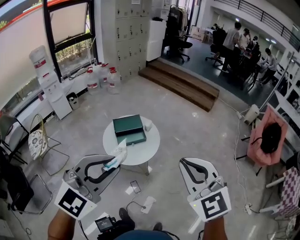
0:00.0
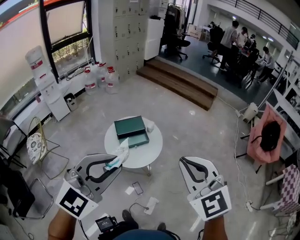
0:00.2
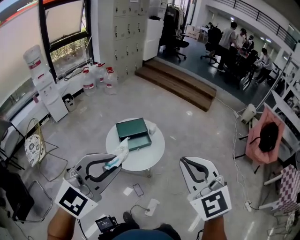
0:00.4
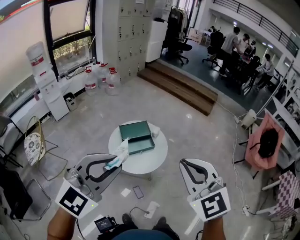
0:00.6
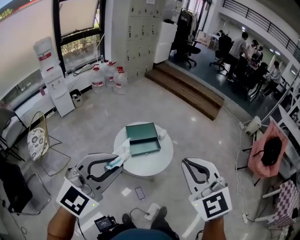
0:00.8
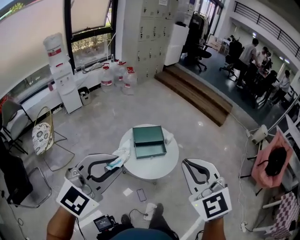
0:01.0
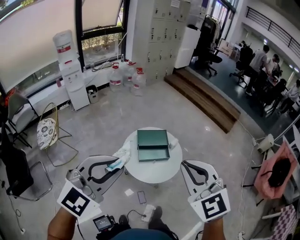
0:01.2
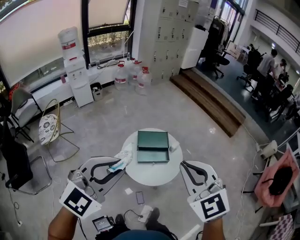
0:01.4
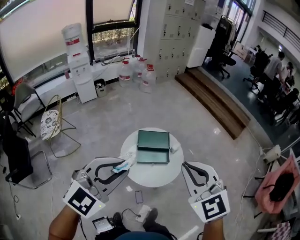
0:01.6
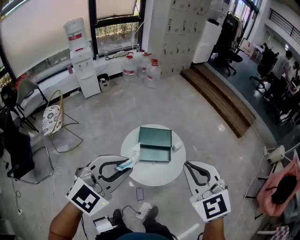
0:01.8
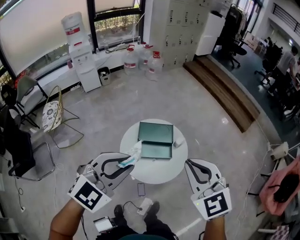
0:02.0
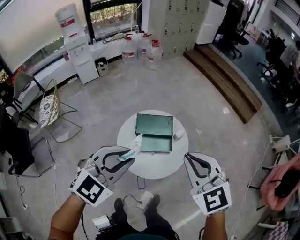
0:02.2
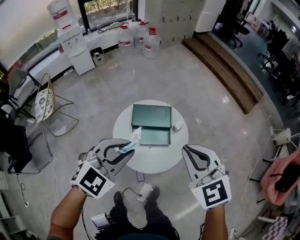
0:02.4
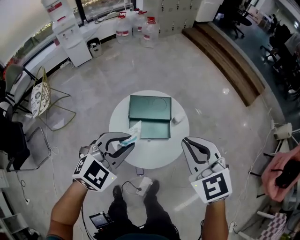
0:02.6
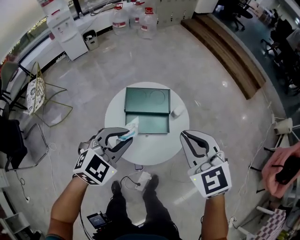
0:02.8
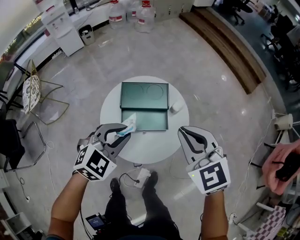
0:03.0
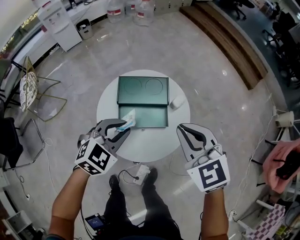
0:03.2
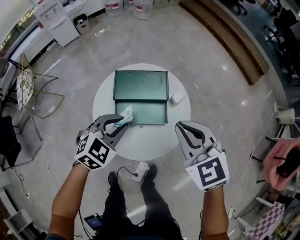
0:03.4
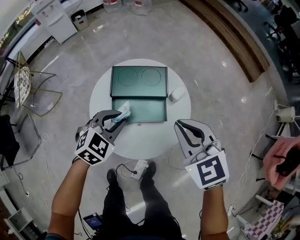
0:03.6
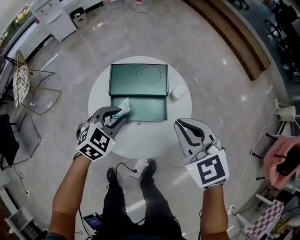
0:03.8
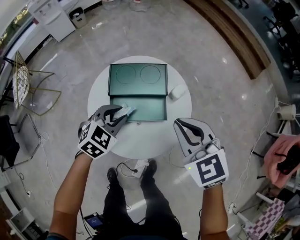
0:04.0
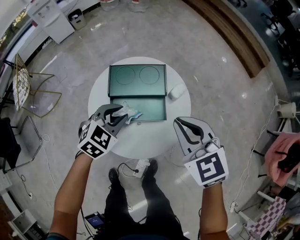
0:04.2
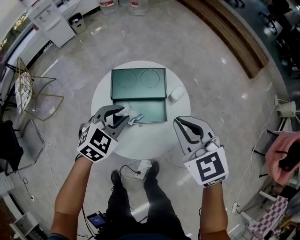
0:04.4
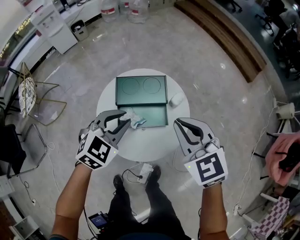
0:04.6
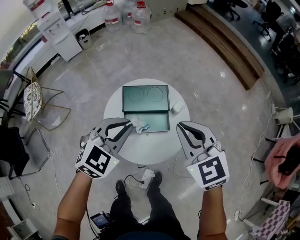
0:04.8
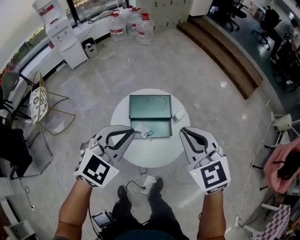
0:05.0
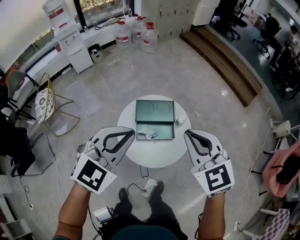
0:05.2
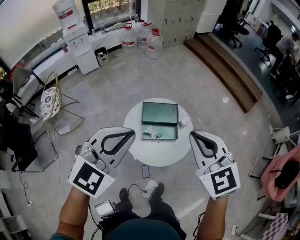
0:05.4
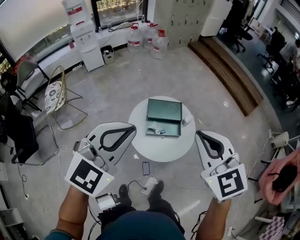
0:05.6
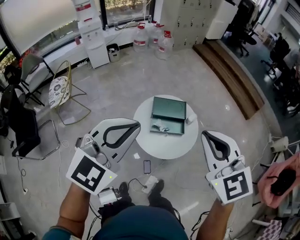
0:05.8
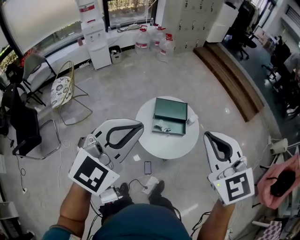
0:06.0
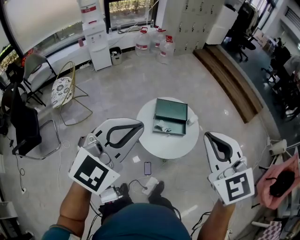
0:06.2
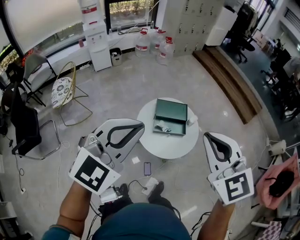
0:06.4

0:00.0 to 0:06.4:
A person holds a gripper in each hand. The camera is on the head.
0:00.0 to 0:01.6: The two grippers go approximately 25 cm forward and to the left.
0:01.6 to 0:03.2: Both grippers travel together downward and forward, approximately 40 cm. The left gripper turns by roughly 30 degrees.
0:03.2 to 0:04.8: The right gripper goes approximately 5 cm upward. The left gripper travels upward by approximately 10 cm.
0:04.8 to 0:06.4: The right gripper heads upward and backward, covering some 40 cm, while the left gripper heads upward, backward and to the left, covering about 40 cm, and rotates about 20 degrees.

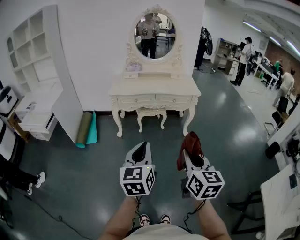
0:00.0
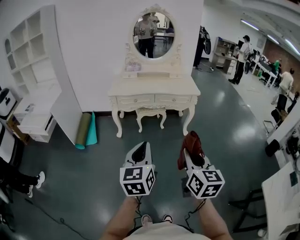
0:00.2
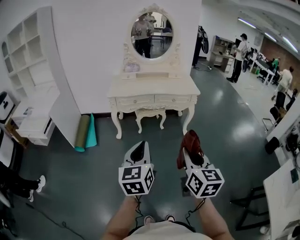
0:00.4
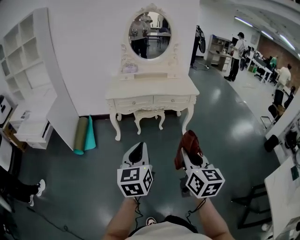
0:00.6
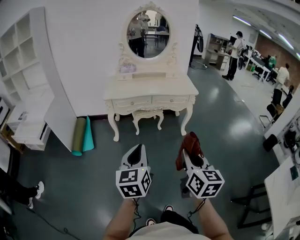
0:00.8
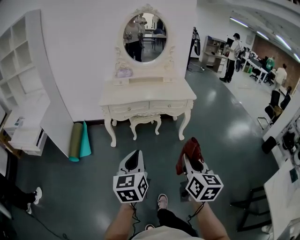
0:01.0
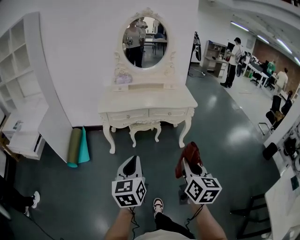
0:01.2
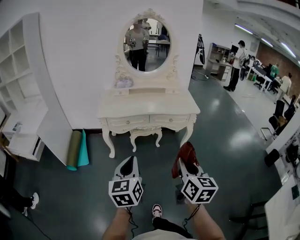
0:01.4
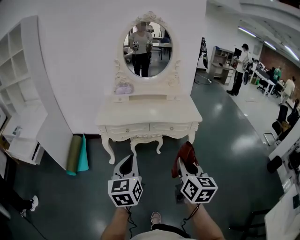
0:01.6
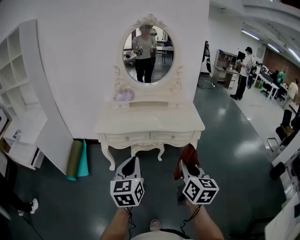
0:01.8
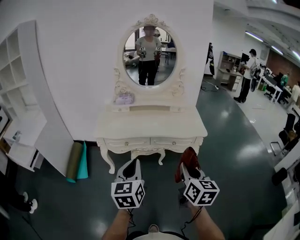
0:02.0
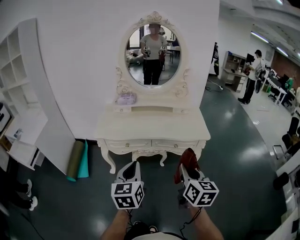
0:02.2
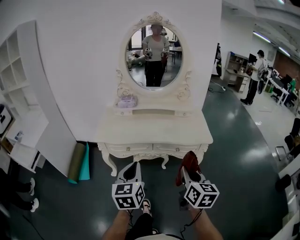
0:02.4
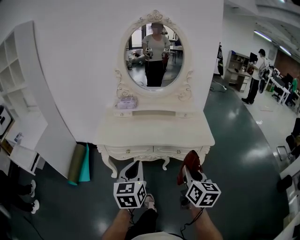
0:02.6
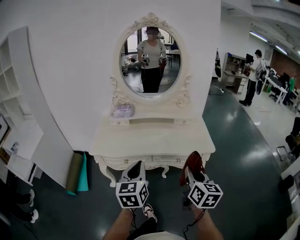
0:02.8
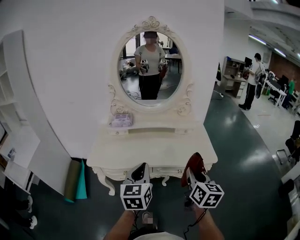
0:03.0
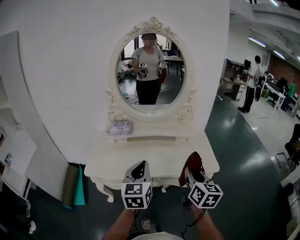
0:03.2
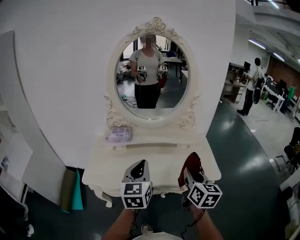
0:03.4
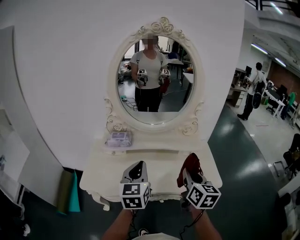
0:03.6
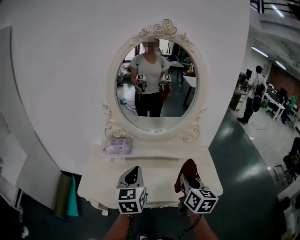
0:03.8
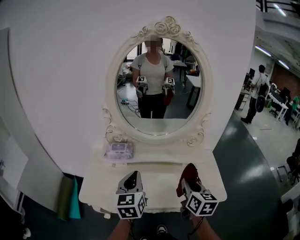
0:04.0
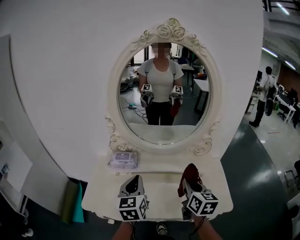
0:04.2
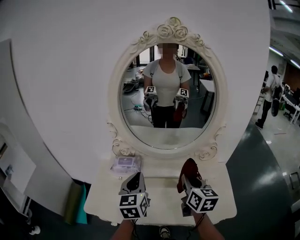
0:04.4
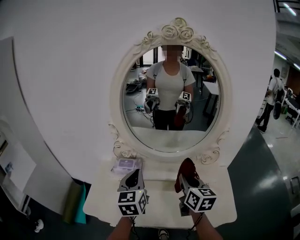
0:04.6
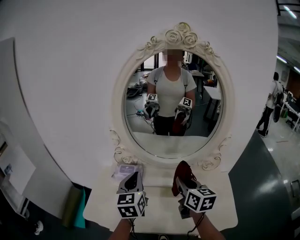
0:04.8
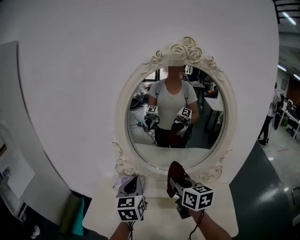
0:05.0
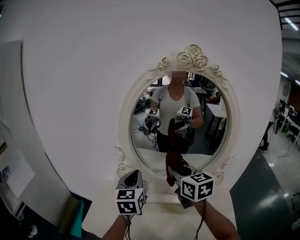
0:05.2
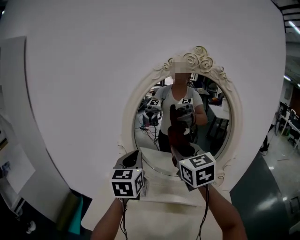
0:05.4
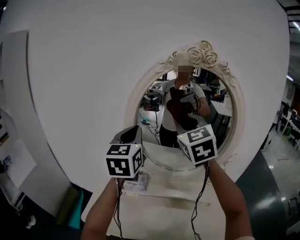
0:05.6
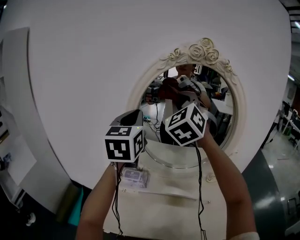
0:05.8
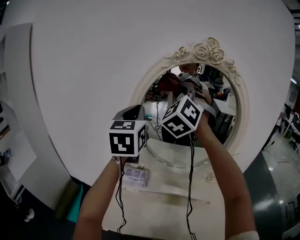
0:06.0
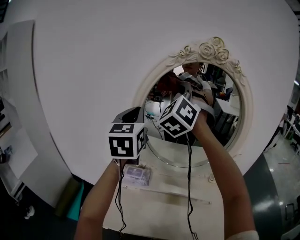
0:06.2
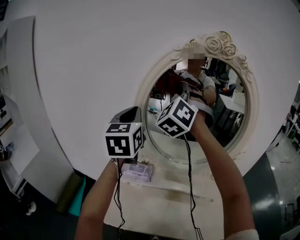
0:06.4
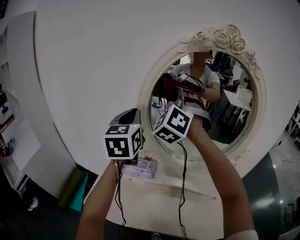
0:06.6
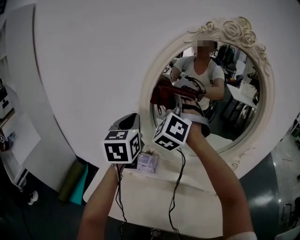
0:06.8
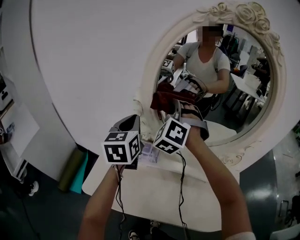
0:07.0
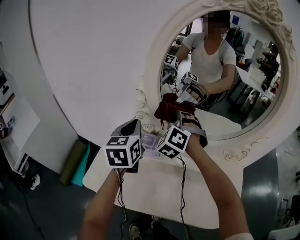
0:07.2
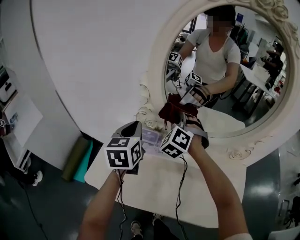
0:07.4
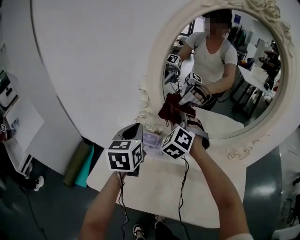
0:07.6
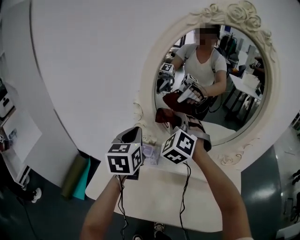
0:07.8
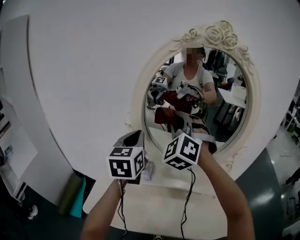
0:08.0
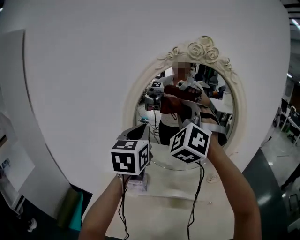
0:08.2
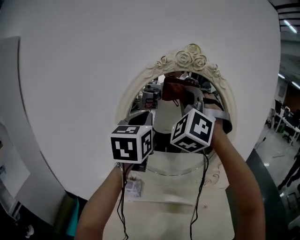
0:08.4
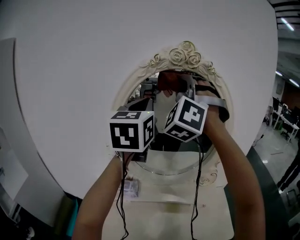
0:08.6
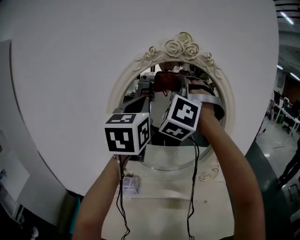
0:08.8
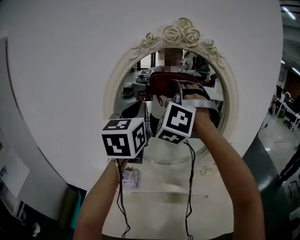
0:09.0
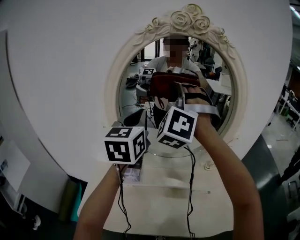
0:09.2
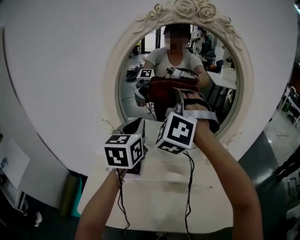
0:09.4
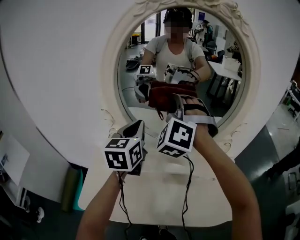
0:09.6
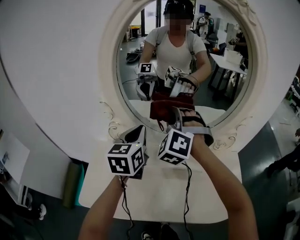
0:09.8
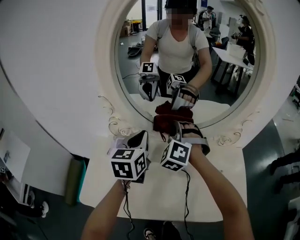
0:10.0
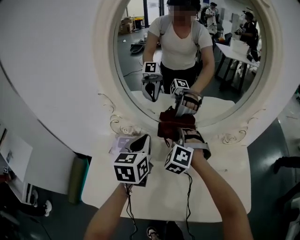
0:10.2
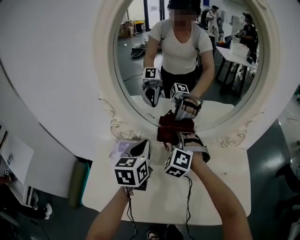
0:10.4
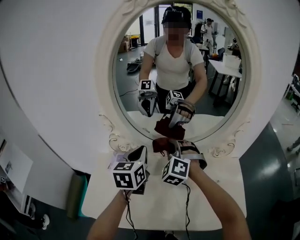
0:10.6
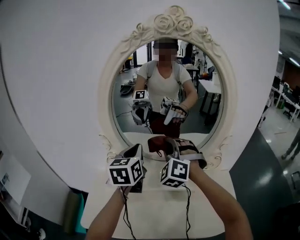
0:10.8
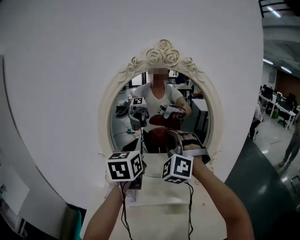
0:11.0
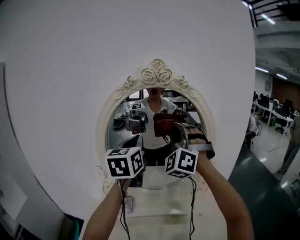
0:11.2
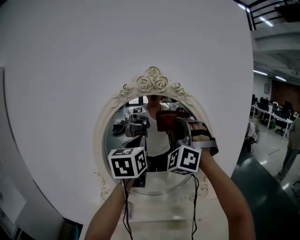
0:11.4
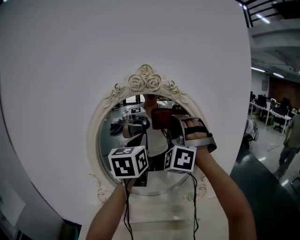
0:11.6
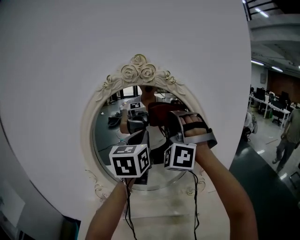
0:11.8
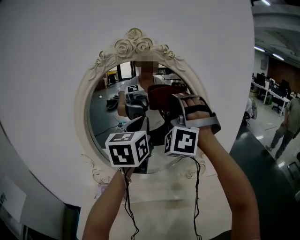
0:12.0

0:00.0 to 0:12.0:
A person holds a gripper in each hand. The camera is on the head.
0:00.0 to 0:01.6: The grippers both shift forward by about 25 cm.
0:01.6 to 0:03.0: The grippers both shift forward by some 35 cm.
0:03.0 to 0:04.4: Both grippers move forward, approximately 35 cm.
0:04.4 to 0:06.0: The left gripper goes approximately 30 cm upward and forward. Meanwhile the right gripper moves upward, forward and to the left, some 40 cm, and rolls counterclockwise, seen from behind, by roughly 80 degrees.
0:06.0 to 0:07.6: Both grippers move downward, approximately 30 cm. The right gripper turns by approximately 30 degrees; the left gripper rotates about 20 degrees.
0:07.6 to 0:09.0: The left gripper shifts approximately 30 cm upward and to the right, and swivels roughly 30 degrees, while the right gripper heads upward, covering about 35 cm, and rotates some 30 degrees.
0:09.0 to 0:10.4: The two grippers go about 40 cm downward. The left gripper swivels some 30 degrees. Meanwhile the right gripper angles its fingers downward, by about 30 degrees.
0:10.4 to 0:12.0: The left gripper is displaced upward and to the right by about 35 cm, and swivels some 30 degrees. The right gripper is displaced upward by about 40 cm, and angles its fingers upward, by approximately 40 degrees.

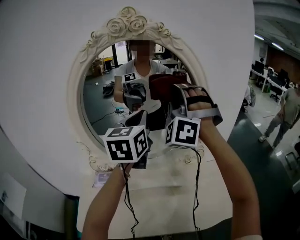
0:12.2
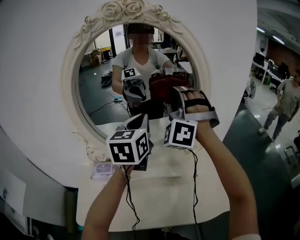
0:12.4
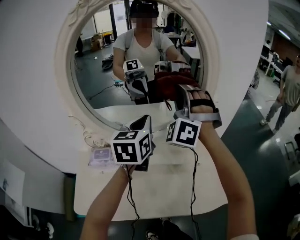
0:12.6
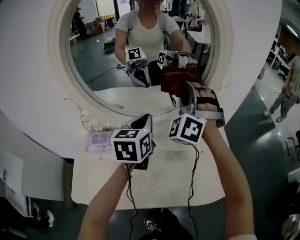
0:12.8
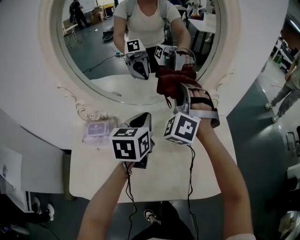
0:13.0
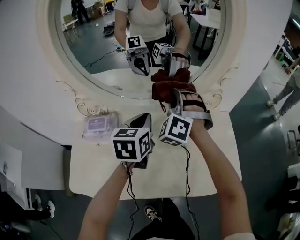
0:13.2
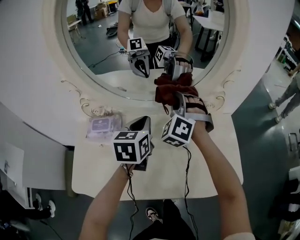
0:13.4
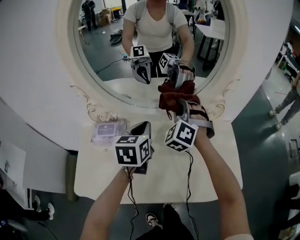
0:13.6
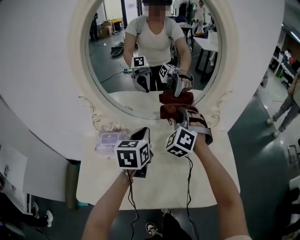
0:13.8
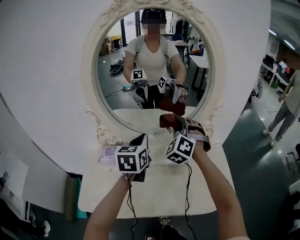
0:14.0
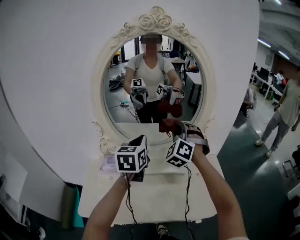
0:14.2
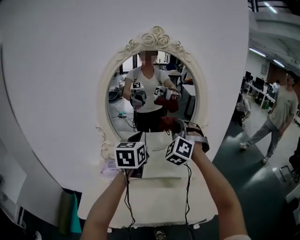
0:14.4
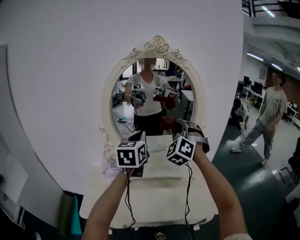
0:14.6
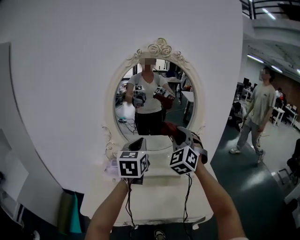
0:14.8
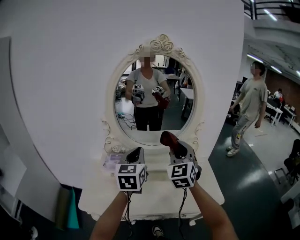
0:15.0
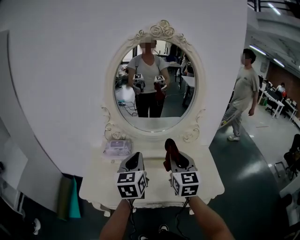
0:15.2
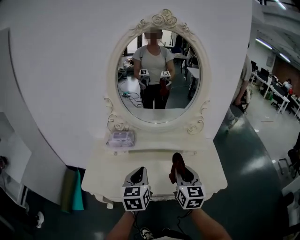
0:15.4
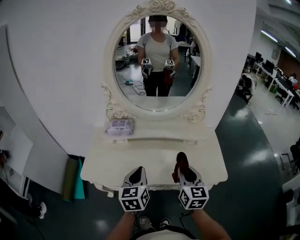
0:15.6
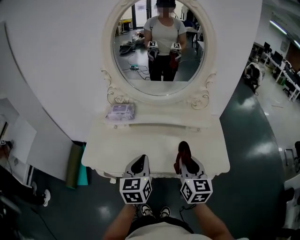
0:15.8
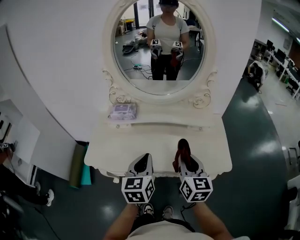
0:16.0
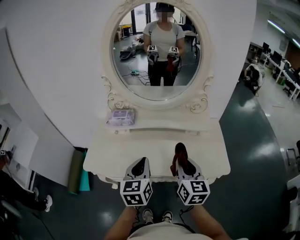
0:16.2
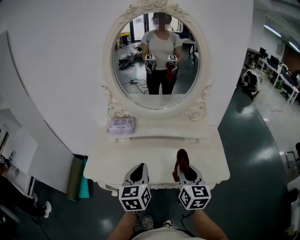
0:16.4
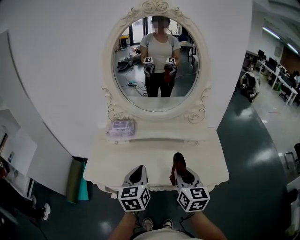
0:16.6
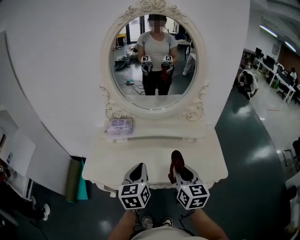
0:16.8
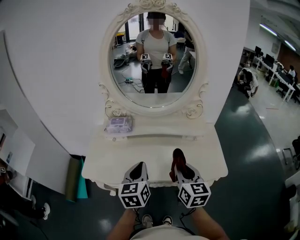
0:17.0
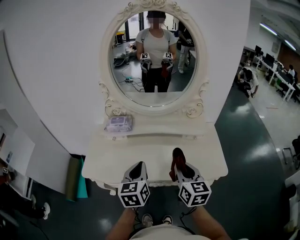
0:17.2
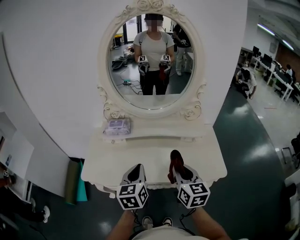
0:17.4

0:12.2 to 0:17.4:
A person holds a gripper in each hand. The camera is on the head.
0:12.2 to 0:14.0: Both grippers move downward, about 25 cm. The left gripper rotates about 20 degrees. The right gripper rotates some 30 degrees.
0:14.0 to 0:15.6: The grippers both shift backward by approximately 30 cm. The right gripper rolls clockwise, seen from behind, by some 70 degrees.
0:15.6 to 0:17.4: There are only small adjustments of the grippers.
